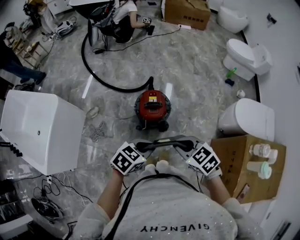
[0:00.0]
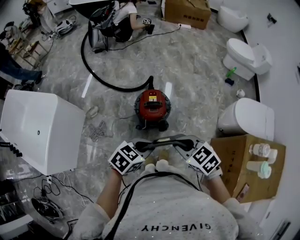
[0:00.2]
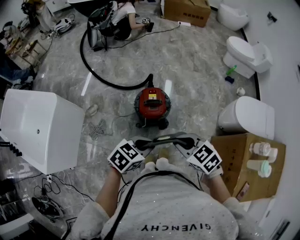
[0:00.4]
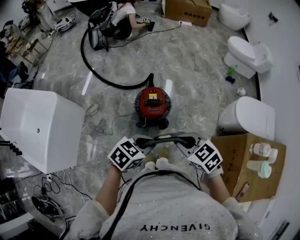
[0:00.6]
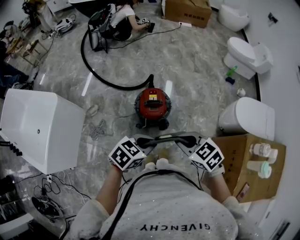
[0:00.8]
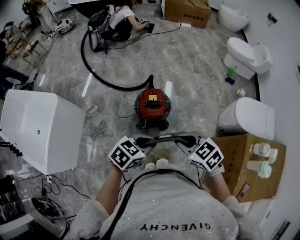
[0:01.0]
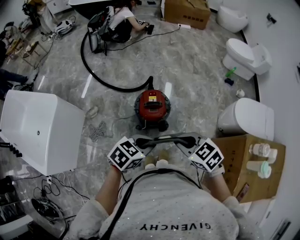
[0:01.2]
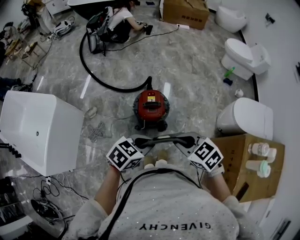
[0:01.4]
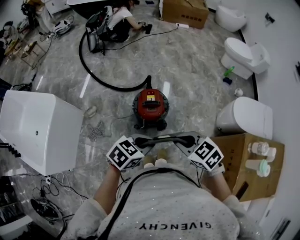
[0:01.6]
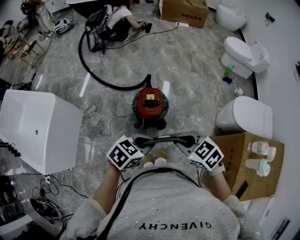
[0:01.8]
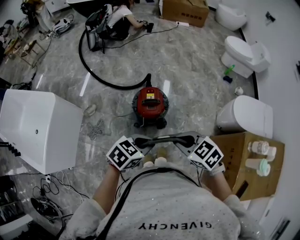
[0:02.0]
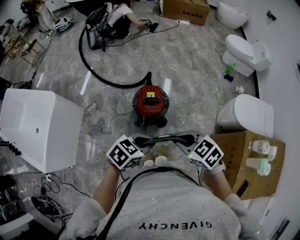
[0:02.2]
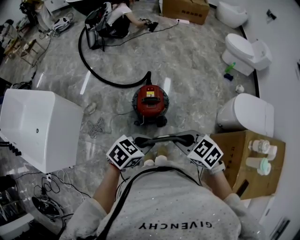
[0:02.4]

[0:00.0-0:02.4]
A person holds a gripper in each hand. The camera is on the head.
0:00.0 to 0:02.4: The grippers stay close to where they were, moving slightly.

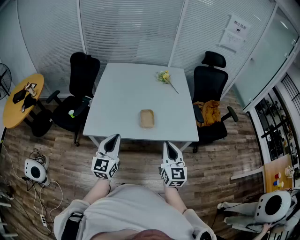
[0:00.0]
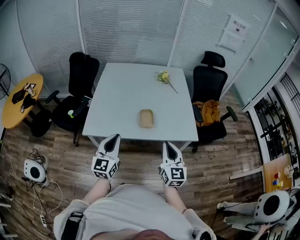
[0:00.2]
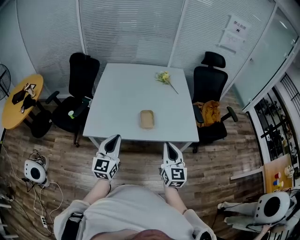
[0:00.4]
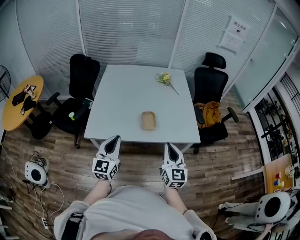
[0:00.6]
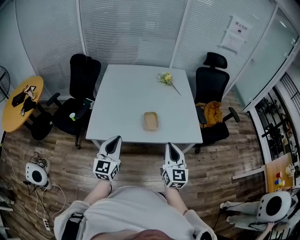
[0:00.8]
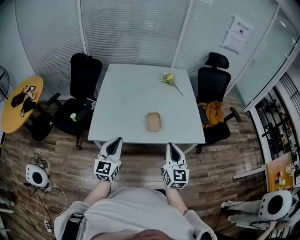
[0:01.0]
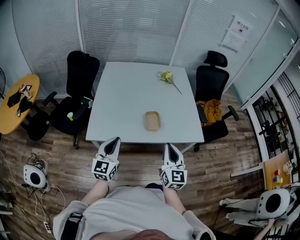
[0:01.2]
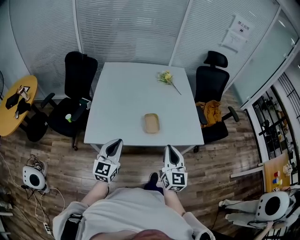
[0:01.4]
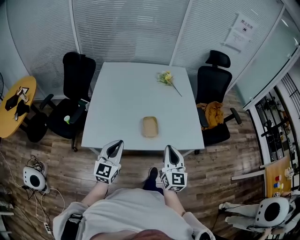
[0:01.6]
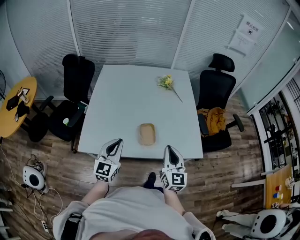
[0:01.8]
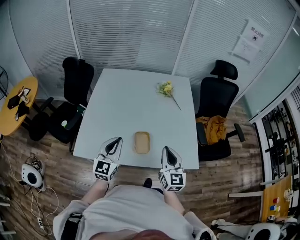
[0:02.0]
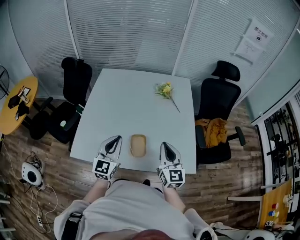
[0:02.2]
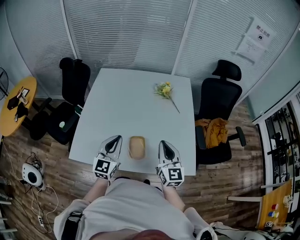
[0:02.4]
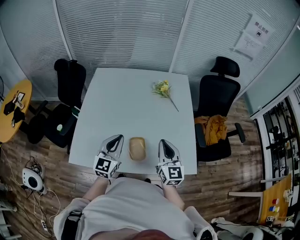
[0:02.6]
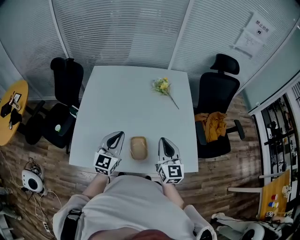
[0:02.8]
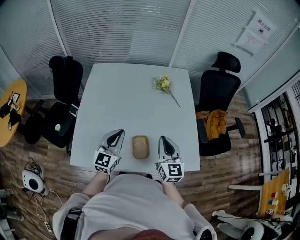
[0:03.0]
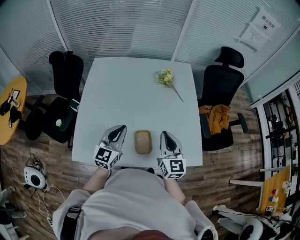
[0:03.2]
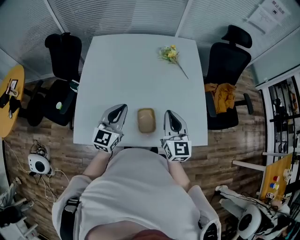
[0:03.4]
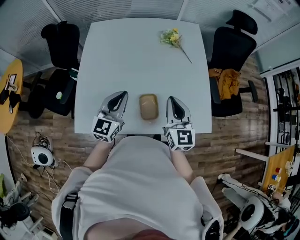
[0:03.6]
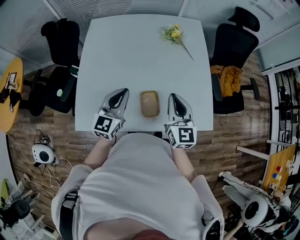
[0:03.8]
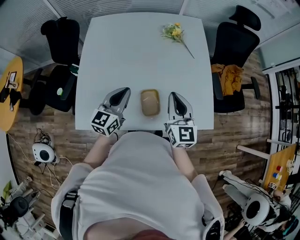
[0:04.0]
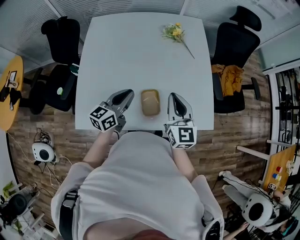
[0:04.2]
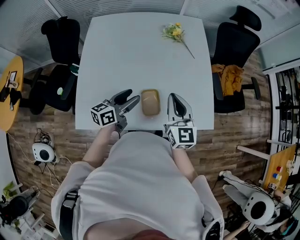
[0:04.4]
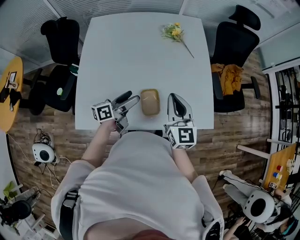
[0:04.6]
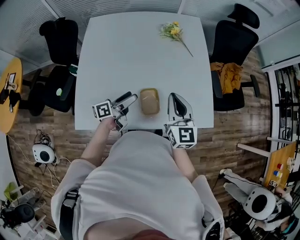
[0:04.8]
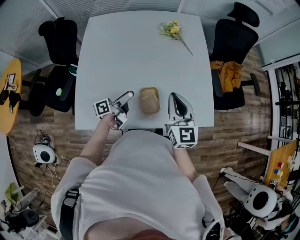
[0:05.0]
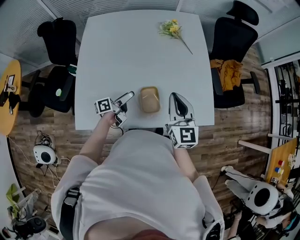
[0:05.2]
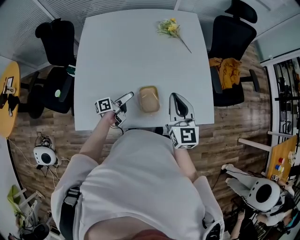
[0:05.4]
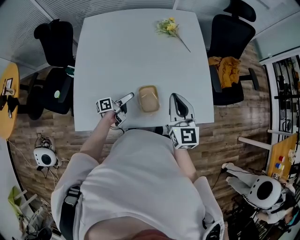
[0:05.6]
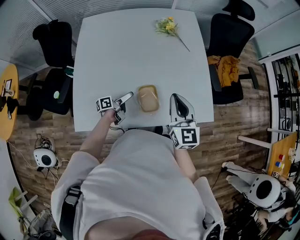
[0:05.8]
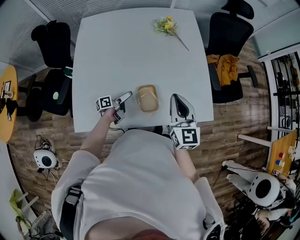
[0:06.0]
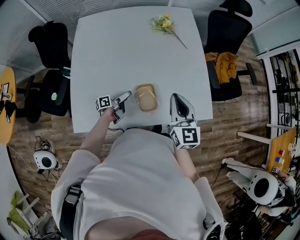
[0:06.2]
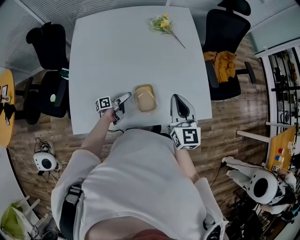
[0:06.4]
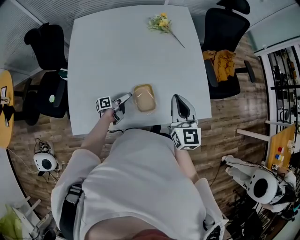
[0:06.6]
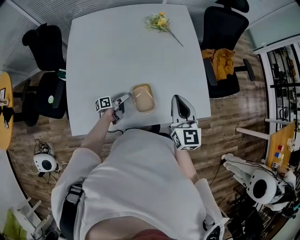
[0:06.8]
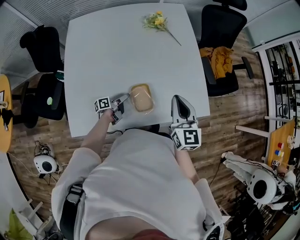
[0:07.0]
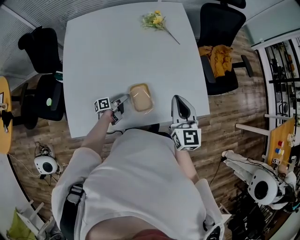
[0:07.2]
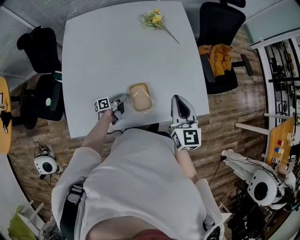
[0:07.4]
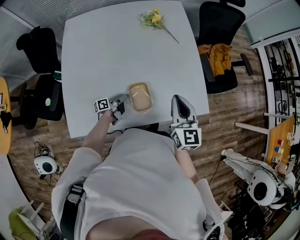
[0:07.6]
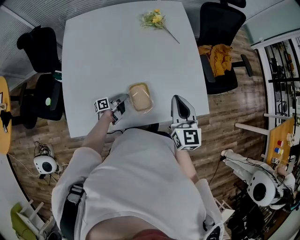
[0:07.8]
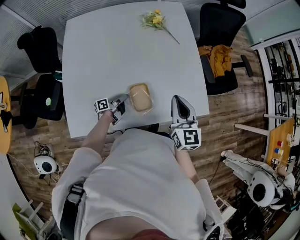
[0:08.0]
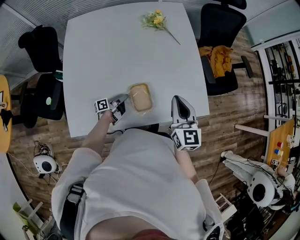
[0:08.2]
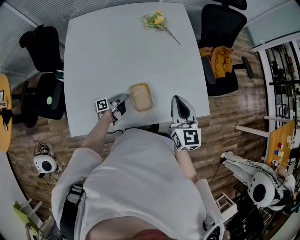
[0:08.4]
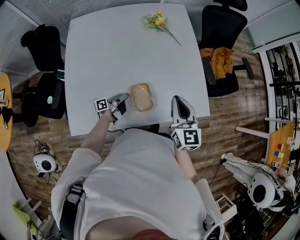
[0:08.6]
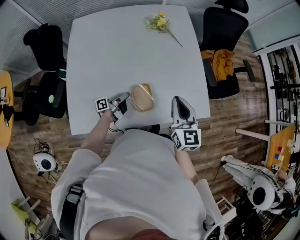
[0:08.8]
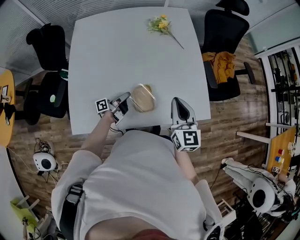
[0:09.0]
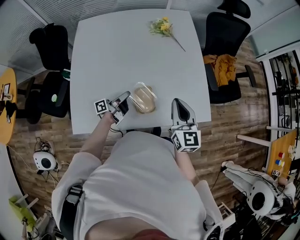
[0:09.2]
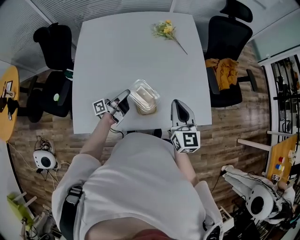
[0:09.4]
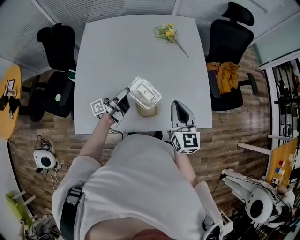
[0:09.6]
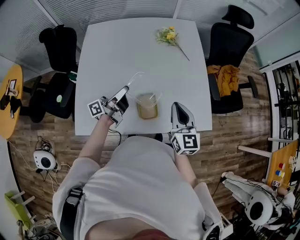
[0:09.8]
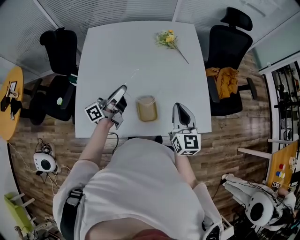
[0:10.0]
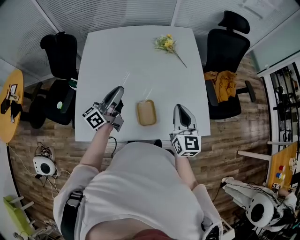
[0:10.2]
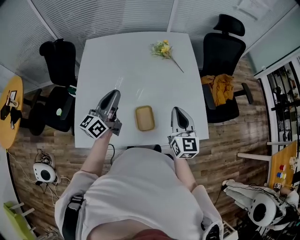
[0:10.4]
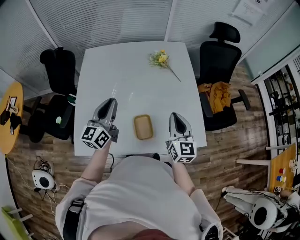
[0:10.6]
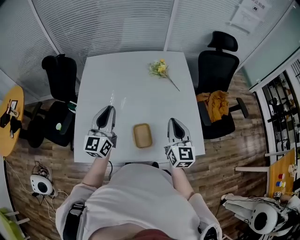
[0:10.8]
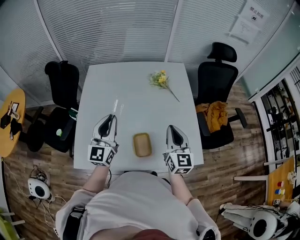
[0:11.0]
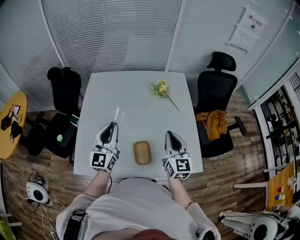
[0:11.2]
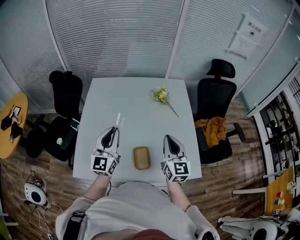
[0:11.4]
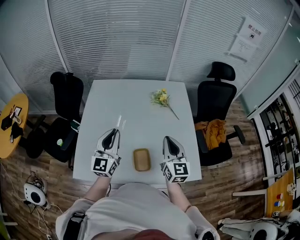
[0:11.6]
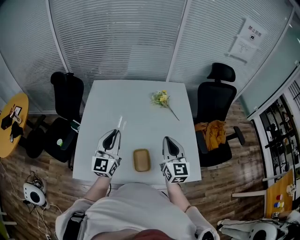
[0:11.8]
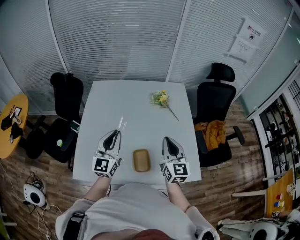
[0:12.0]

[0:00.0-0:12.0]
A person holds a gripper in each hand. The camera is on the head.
0:00.0 to 0:01.6: Both grippers move forward, about 10 cm.
0:01.6 to 0:03.0: The grippers both shift forward by approximately 25 cm.
0:03.0 to 0:04.4: The left gripper is displaced downward by approximately 10 cm, twists about 40 degrees counterclockwise, seen from behind, and opens its fingers.
0:04.4 to 0:06.0: The left gripper heads downward, covering roughly 20 cm, rotates around the line of its fingers by about 40 degrees, counterclockwise from behind, and opens its fingers.
0:06.0 to 0:07.6: The left gripper shifts by about 5 cm, and closes up.
0:07.6 to 0:09.0: The left gripper moves upward, about 10 cm.
0:09.0 to 0:10.4: The left gripper heads upward, covering about 30 cm, and rotates around the line of its fingers by some 60 degrees, clockwise from behind.
0:10.4 to 0:12.0: The left gripper turns by roughly 40 degrees. Meanwhile the right gripper is displaced upward by approximately 5 cm.

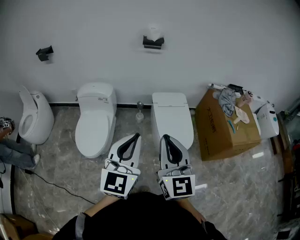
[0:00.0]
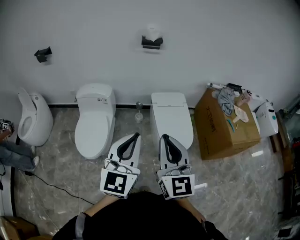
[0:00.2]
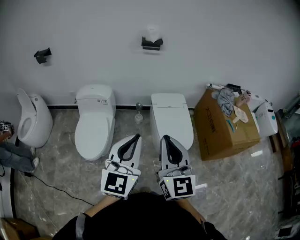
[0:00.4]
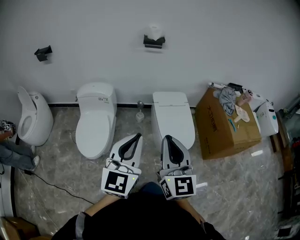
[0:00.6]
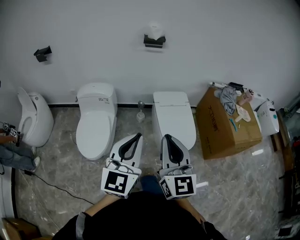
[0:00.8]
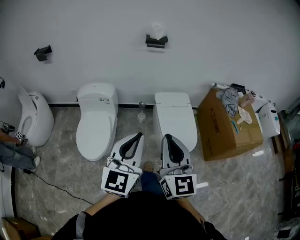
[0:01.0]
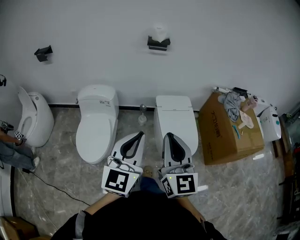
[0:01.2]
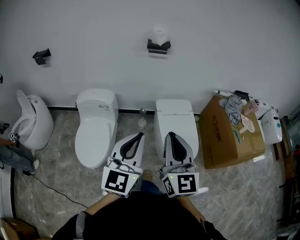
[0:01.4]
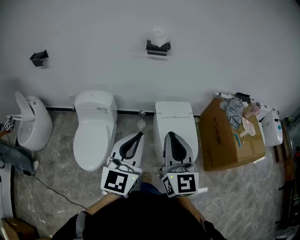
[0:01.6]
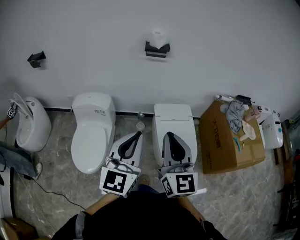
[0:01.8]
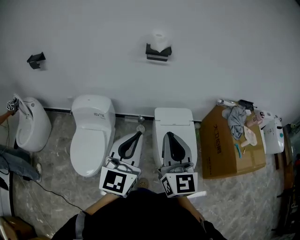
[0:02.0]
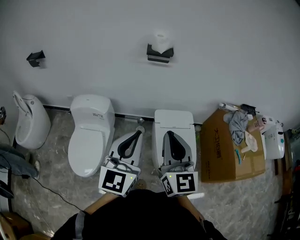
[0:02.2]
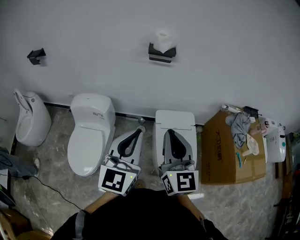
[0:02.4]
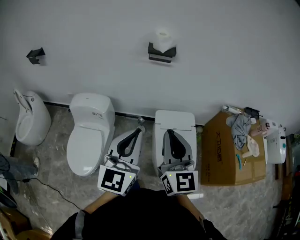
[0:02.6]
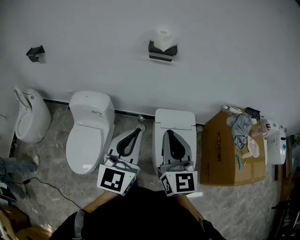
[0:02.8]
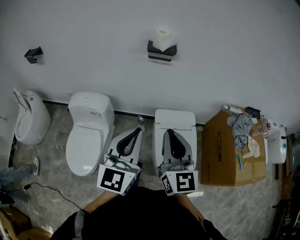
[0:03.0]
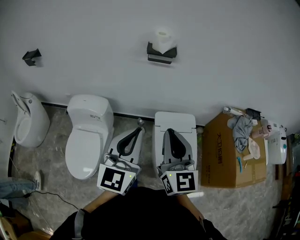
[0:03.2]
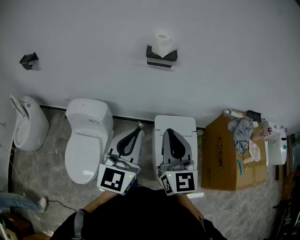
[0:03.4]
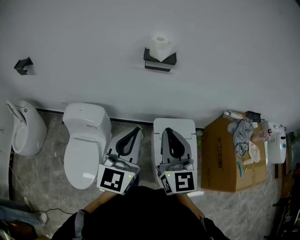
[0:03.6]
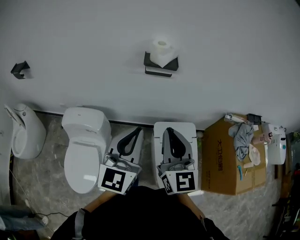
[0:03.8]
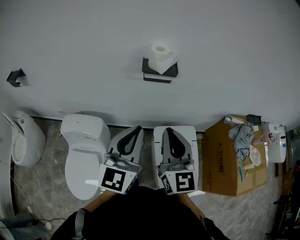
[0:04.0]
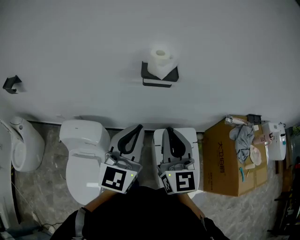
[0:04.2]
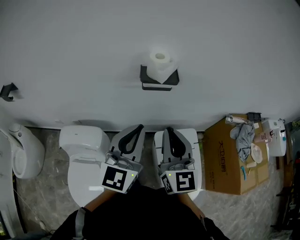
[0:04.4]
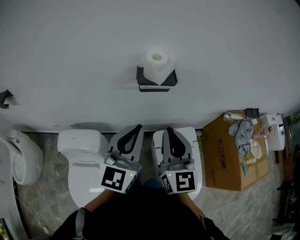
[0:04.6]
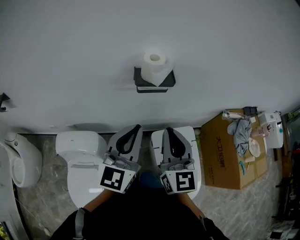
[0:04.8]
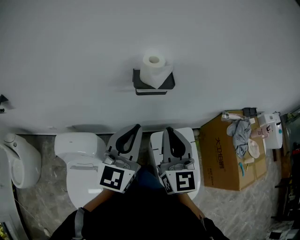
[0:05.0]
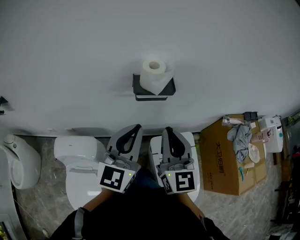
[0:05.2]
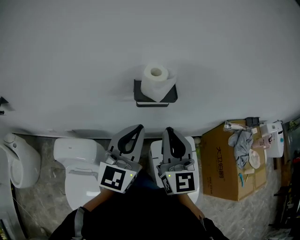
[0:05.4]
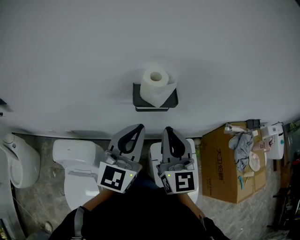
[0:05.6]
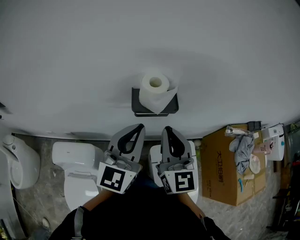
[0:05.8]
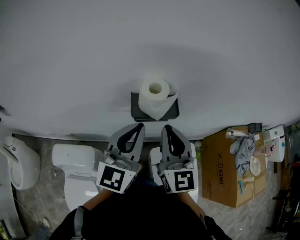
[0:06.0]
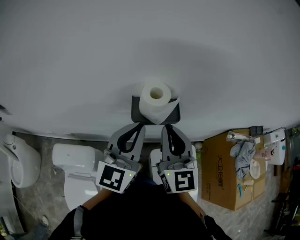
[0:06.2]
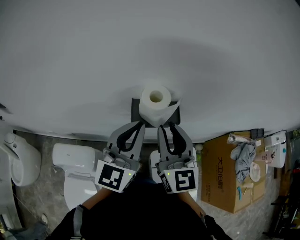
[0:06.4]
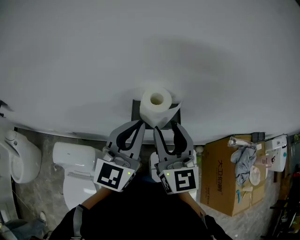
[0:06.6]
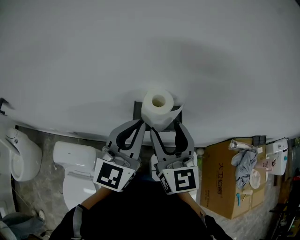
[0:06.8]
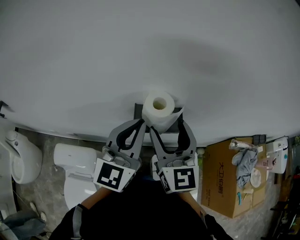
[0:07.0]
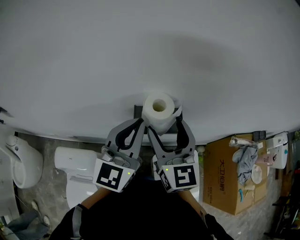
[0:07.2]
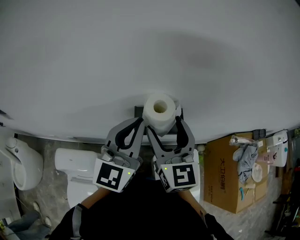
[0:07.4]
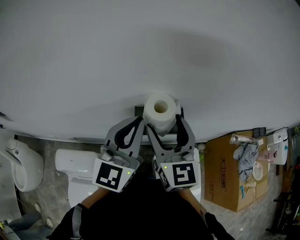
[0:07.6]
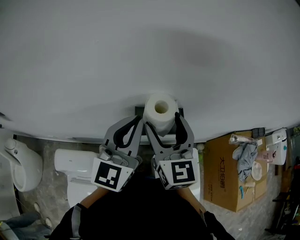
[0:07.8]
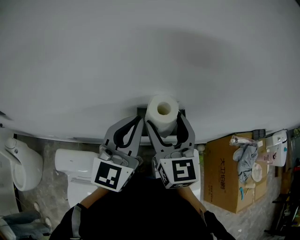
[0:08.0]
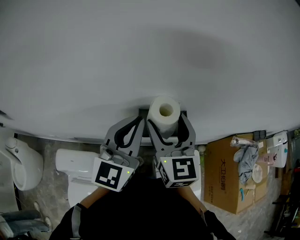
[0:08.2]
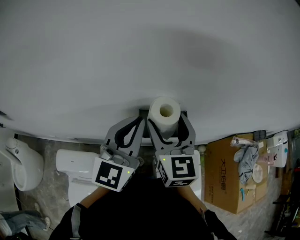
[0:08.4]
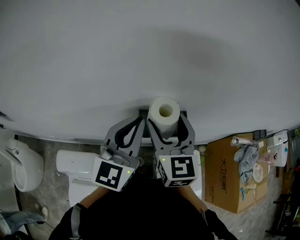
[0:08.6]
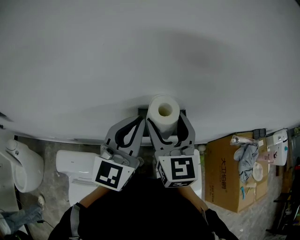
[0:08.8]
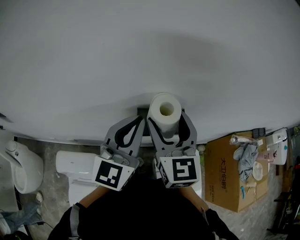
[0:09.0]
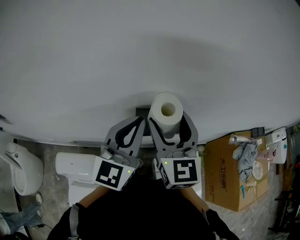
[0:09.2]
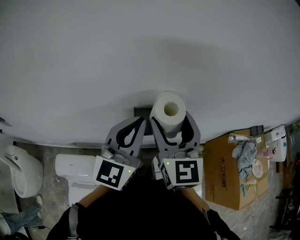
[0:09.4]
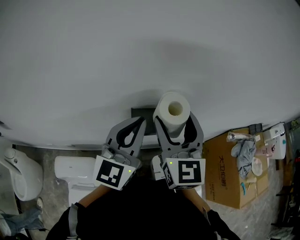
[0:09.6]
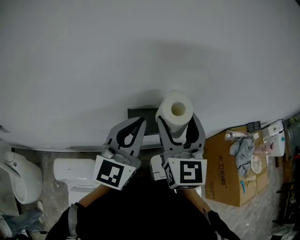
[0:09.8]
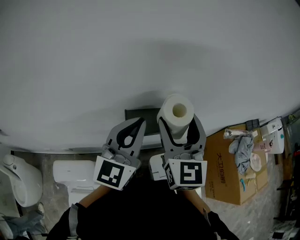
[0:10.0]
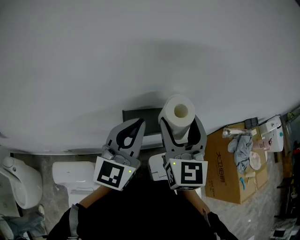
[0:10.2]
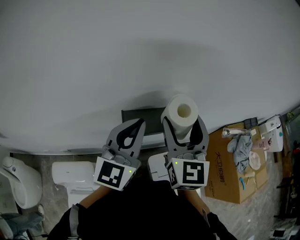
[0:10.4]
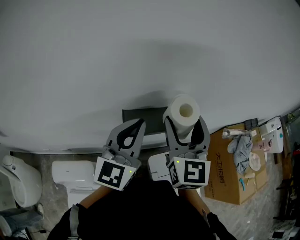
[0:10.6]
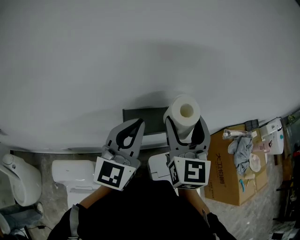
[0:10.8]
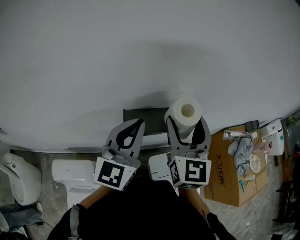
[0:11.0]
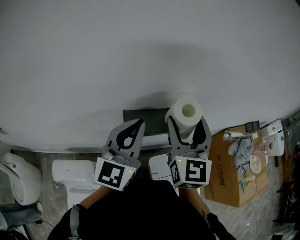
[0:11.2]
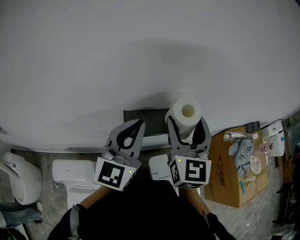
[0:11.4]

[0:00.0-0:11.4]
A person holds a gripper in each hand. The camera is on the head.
0:00.0 to 0:01.4: Both grippers move forward, approximately 10 cm.
0:01.4 to 0:02.8: The grippers both shift forward by some 20 cm.
0:02.8 to 0:04.2: Both grippers move forward, about 25 cm.
0:04.2 to 0:05.6: Both grippers travel together forward, about 15 cm.
0:05.6 to 0:07.2: Both grippers move forward, some 10 cm. The right gripper opens its fingers.
0:07.2 to 0:08.6: The grippers stay close to where they were, moving slightly.
0:08.6 to 0:10.0: The right gripper moves to the right, approximately 5 cm.
0:10.0 to 0:11.4: The grippers make only small movements.
